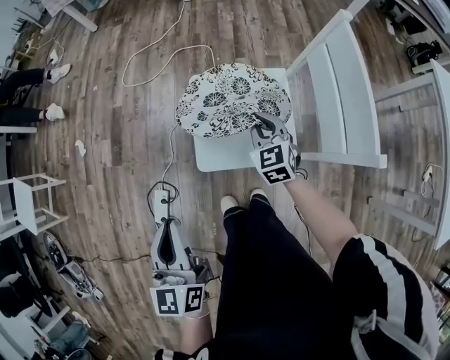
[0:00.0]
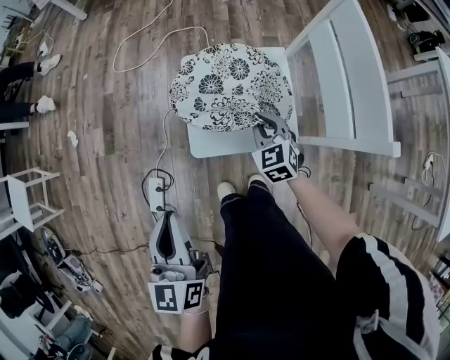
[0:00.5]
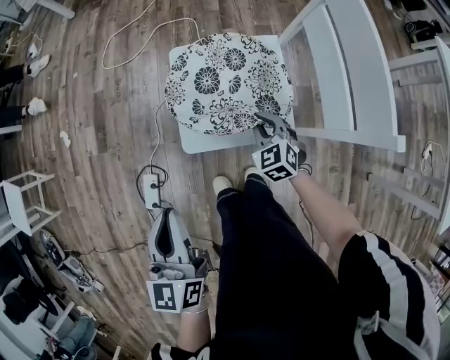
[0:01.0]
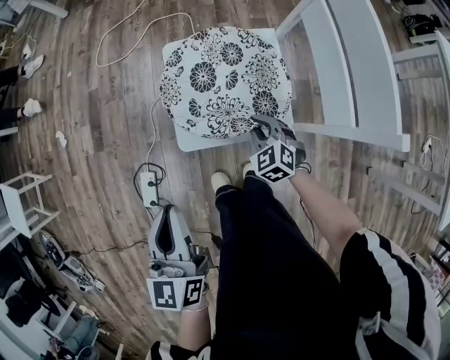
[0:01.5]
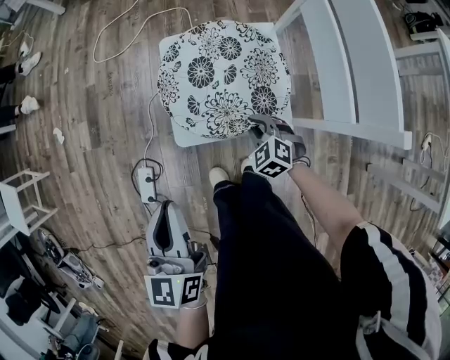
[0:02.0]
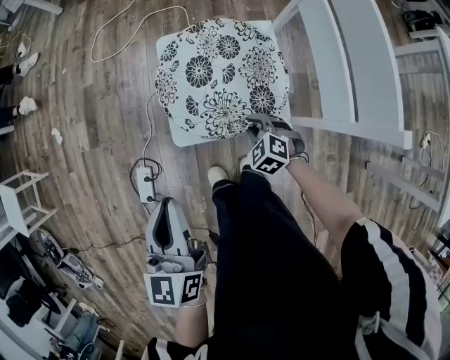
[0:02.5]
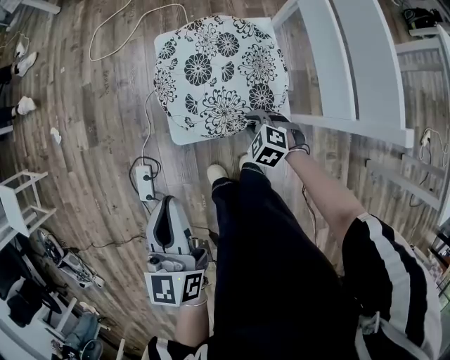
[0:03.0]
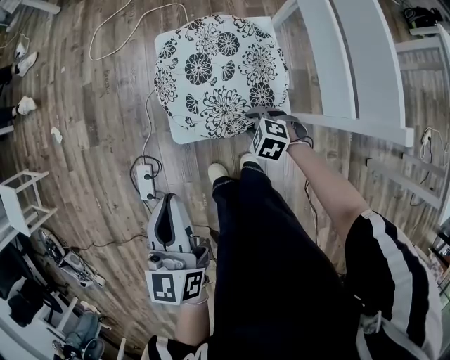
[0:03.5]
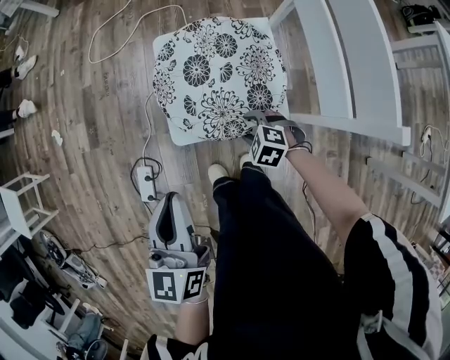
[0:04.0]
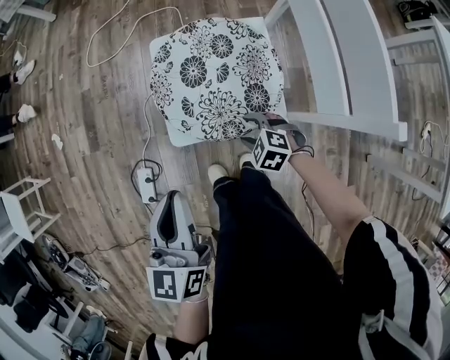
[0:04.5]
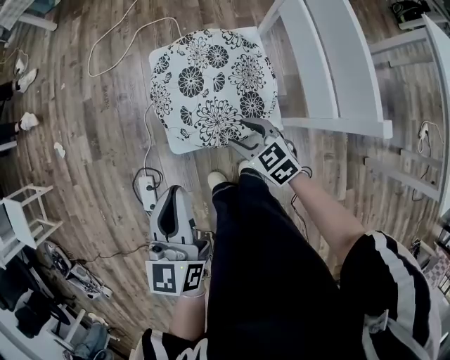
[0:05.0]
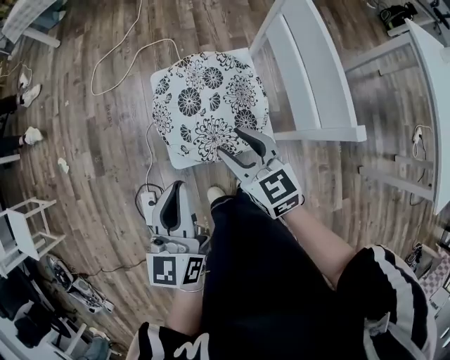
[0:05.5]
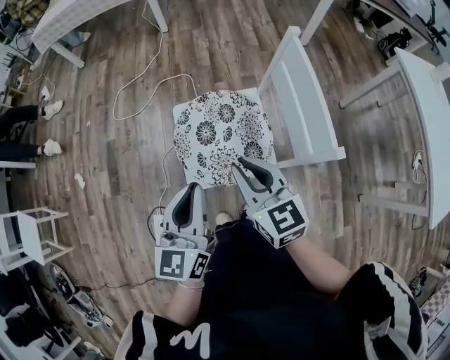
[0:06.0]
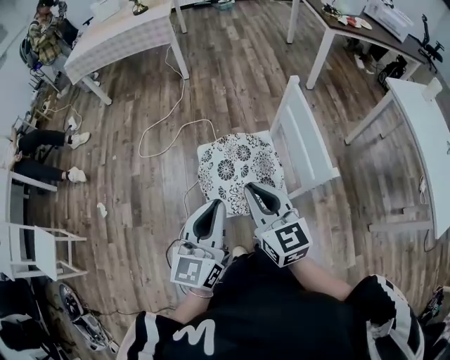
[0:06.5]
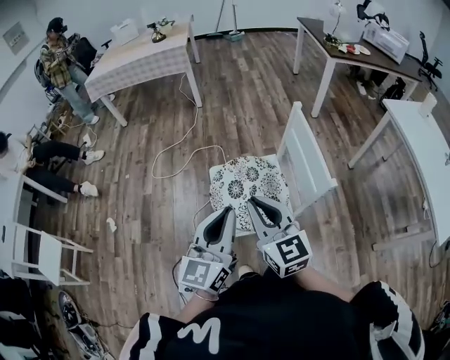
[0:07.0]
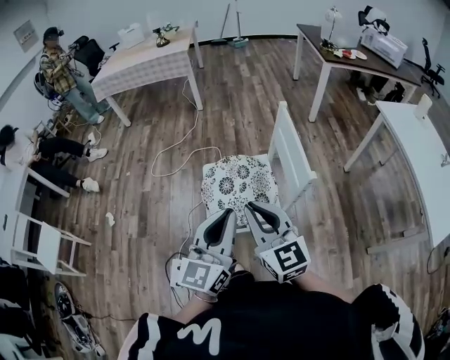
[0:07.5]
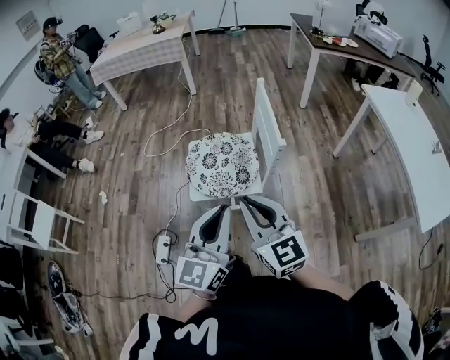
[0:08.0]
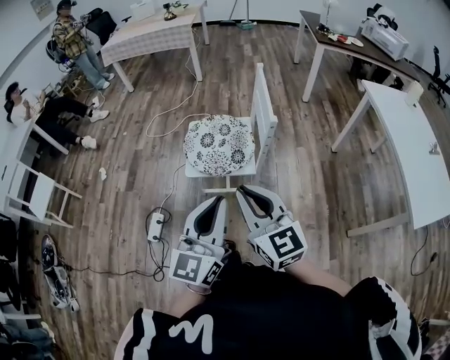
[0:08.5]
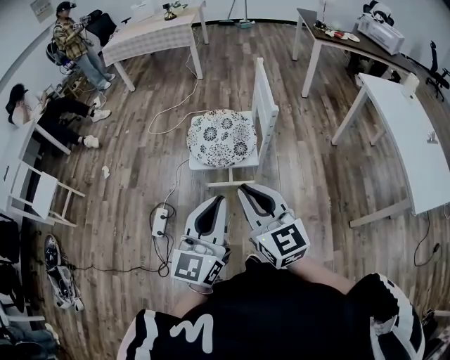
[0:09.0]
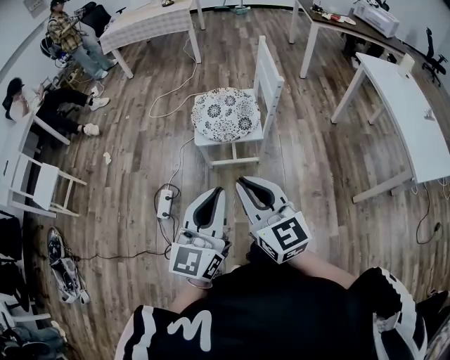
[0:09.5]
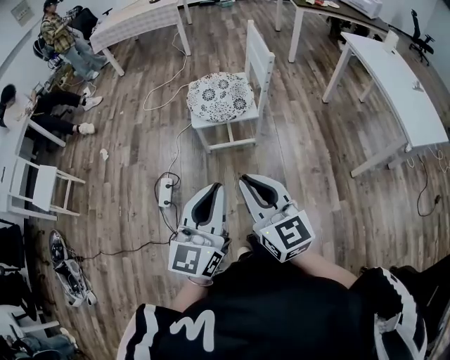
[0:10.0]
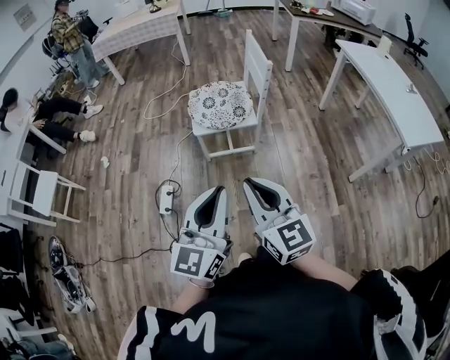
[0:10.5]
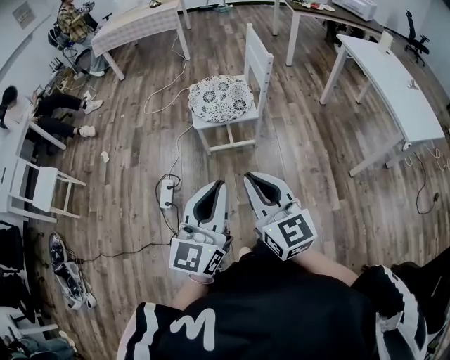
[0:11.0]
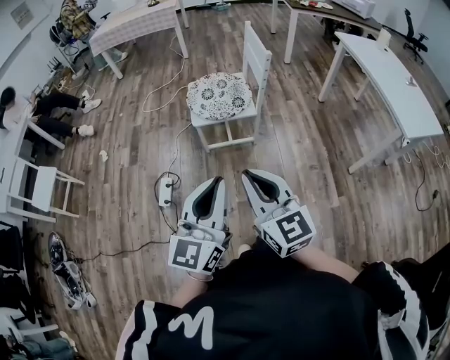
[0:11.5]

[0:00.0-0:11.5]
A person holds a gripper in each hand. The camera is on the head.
0:00.0 to 0:02.0: The right gripper heads downward and backward, covering approximately 20 cm, and rotates approximately 30 degrees. The left gripper heads downward, covering approximately 5 cm.
0:02.0 to 0:04.0: The right gripper swivels some 20 degrees, and opens its fingers.
0:04.0 to 0:06.0: The left gripper heads upward, covering roughly 10 cm. The right gripper goes some 35 cm upward, points its fingers approximately 50 degrees further upward, and closes up.
0:06.0 to 0:07.5: The left gripper travels upward, backward and to the right by roughly 20 cm. The right gripper heads upward and backward, covering some 20 cm.
0:07.5 to 0:09.5: The grippers both shift backward by approximately 30 cm.
0:09.5 to 0:11.5: The grippers both shift backward by some 10 cm.

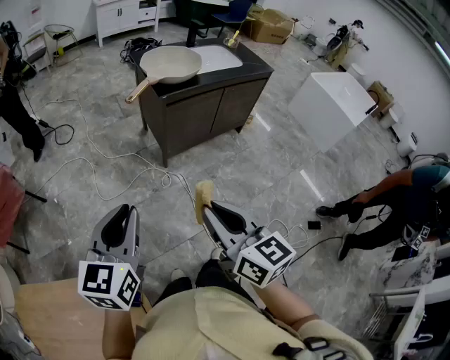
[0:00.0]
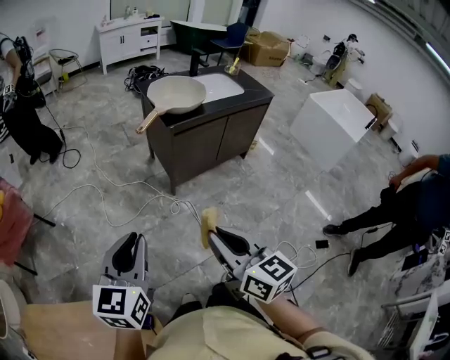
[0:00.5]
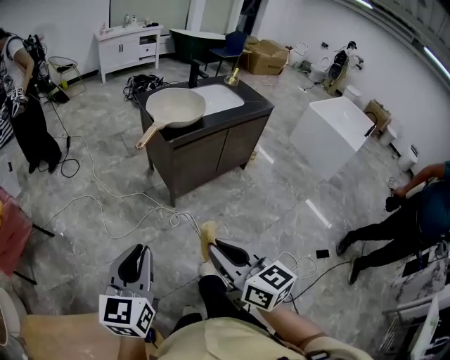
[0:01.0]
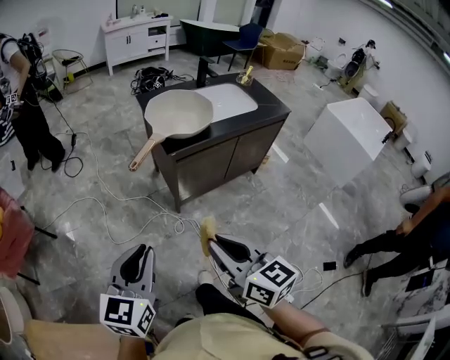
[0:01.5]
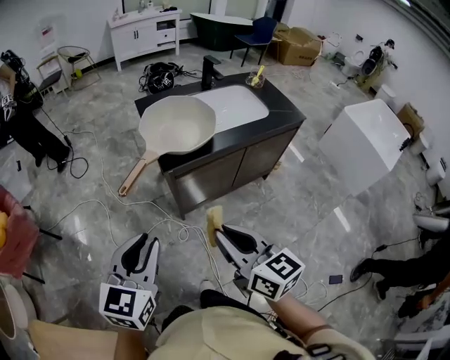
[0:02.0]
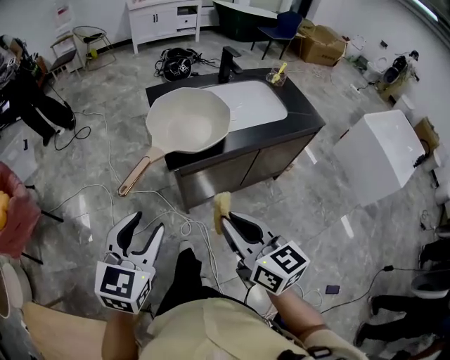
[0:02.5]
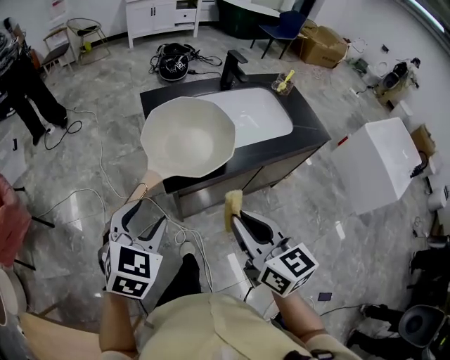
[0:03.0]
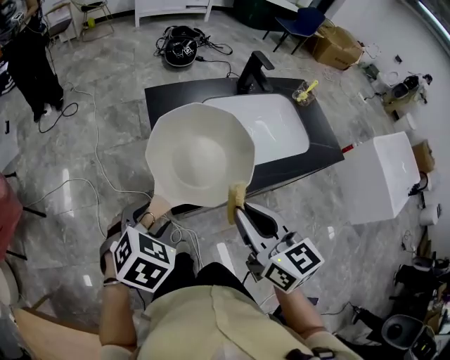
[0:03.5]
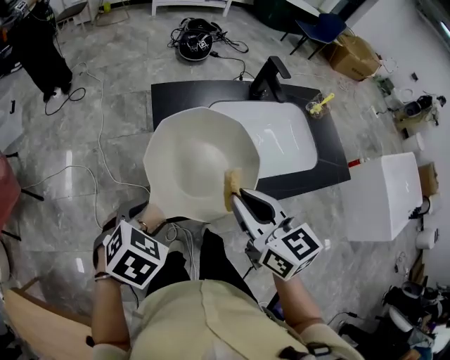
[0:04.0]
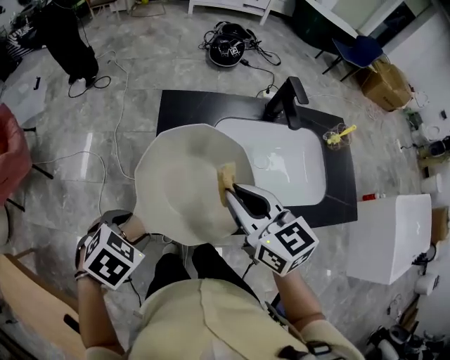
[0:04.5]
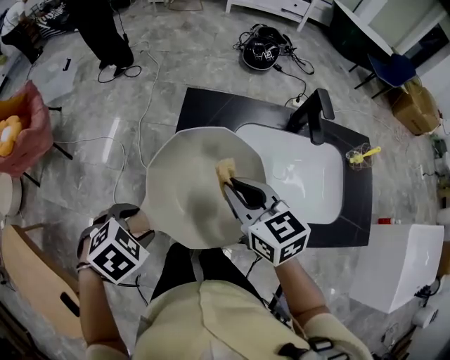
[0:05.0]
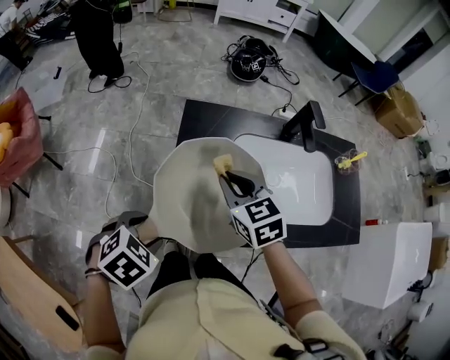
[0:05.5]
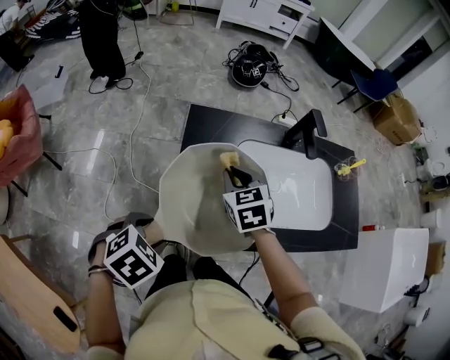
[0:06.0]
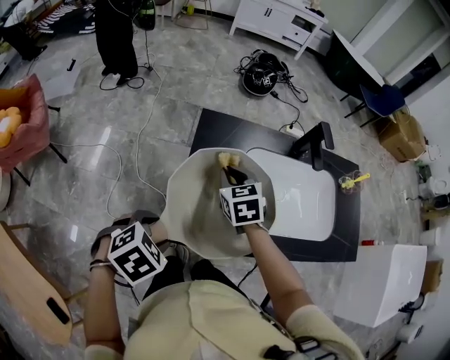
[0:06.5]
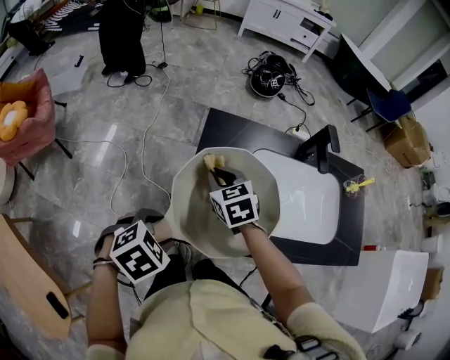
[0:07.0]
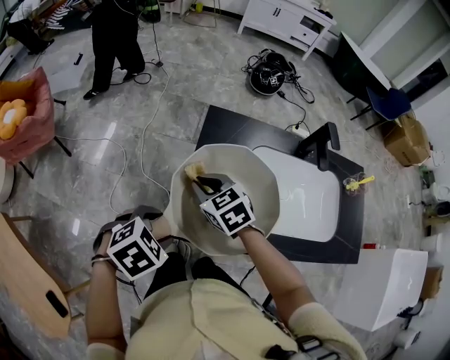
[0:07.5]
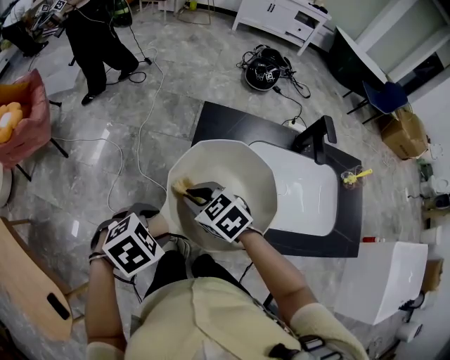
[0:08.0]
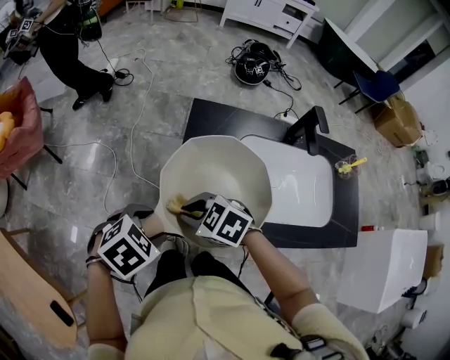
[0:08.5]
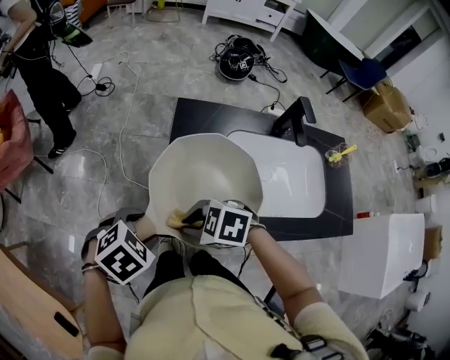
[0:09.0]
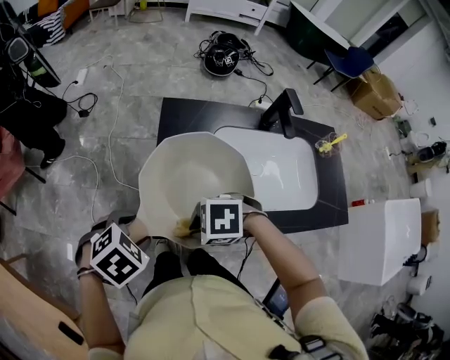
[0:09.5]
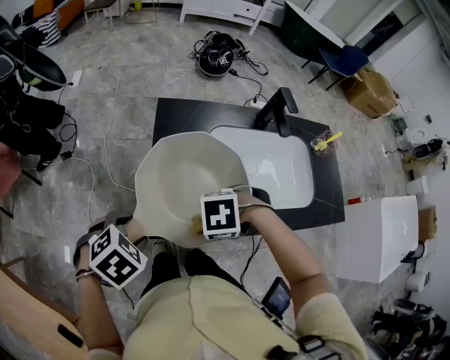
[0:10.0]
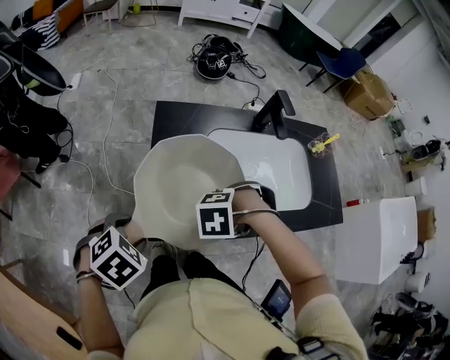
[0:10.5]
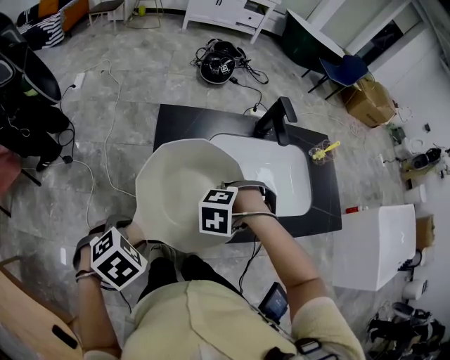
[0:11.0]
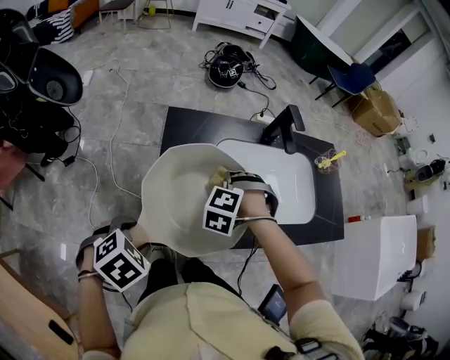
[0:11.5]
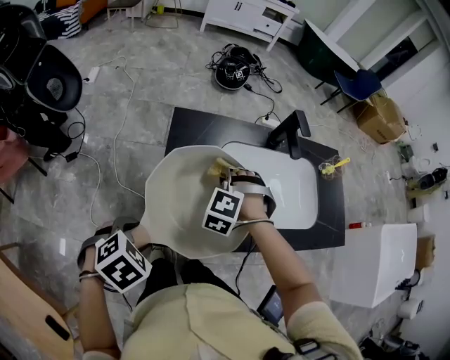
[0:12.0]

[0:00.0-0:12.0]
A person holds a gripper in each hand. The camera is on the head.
0:00.0 to 0:02.0: The right gripper shifts some 30 cm forward. The left gripper moves forward and to the right, about 30 cm.
0:02.0 to 0:04.0: The right gripper moves forward, approximately 40 cm; the left gripper heads forward and downward, covering approximately 35 cm, points its fingers some 40 degrees further downward, and opens its fingers.
0:04.0 to 0:06.0: The right gripper is displaced forward and downward by approximately 20 cm, and changes its angle by roughly 30 degrees.
0:06.0 to 0:08.0: The right gripper shifts about 15 cm to the left and backward, and swivels roughly 40 degrees.
0:08.0 to 0:10.0: The right gripper shifts by some 15 cm, and turns by some 50 degrees.
0:10.0 to 0:12.0: The right gripper moves approximately 20 cm, and rotates about 60 degrees.

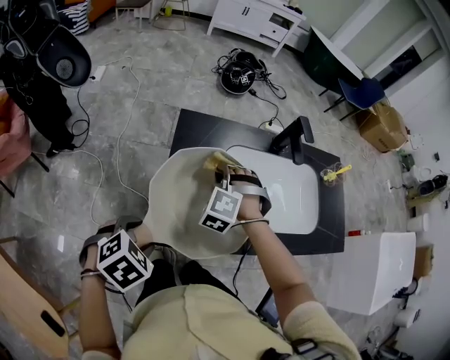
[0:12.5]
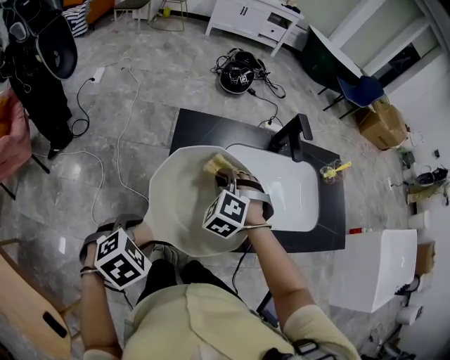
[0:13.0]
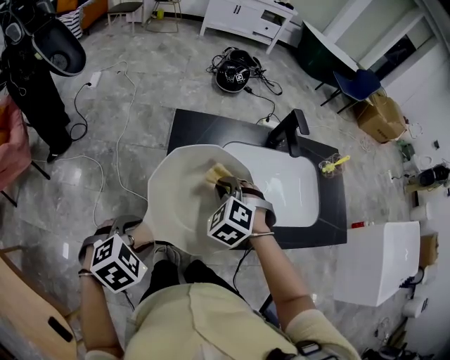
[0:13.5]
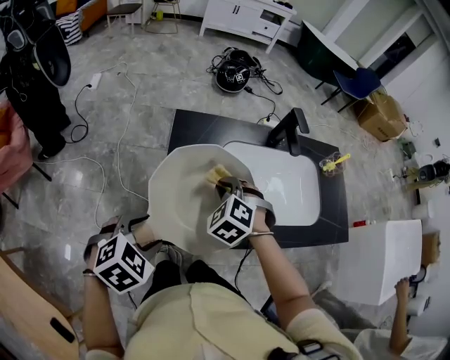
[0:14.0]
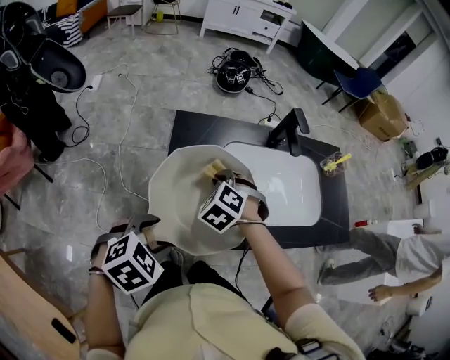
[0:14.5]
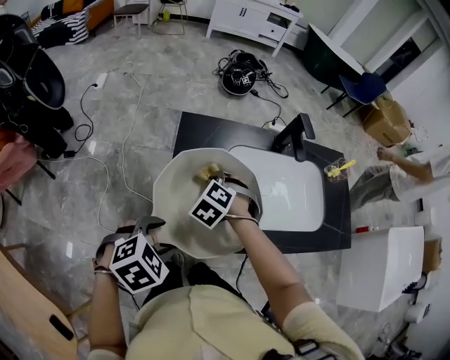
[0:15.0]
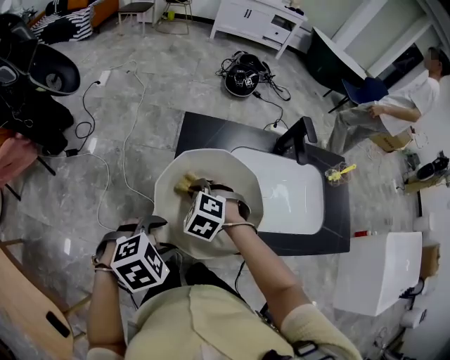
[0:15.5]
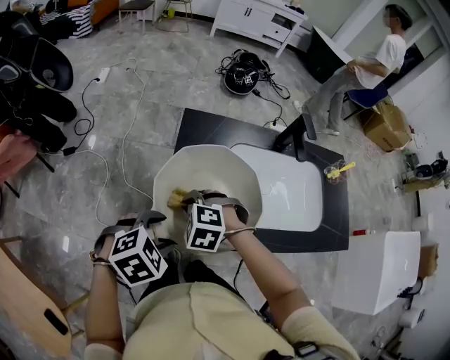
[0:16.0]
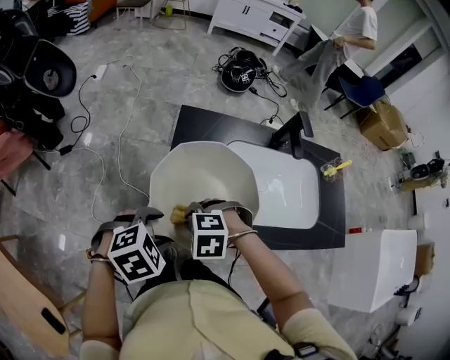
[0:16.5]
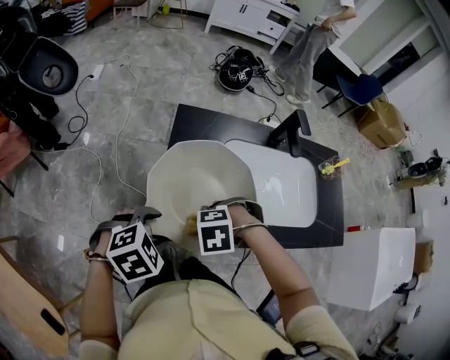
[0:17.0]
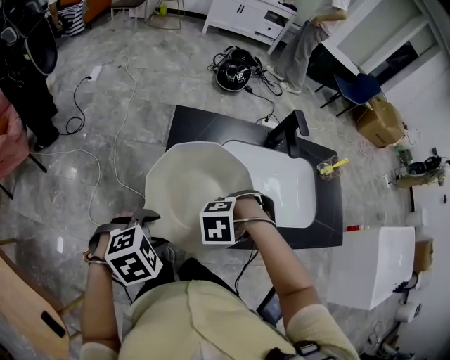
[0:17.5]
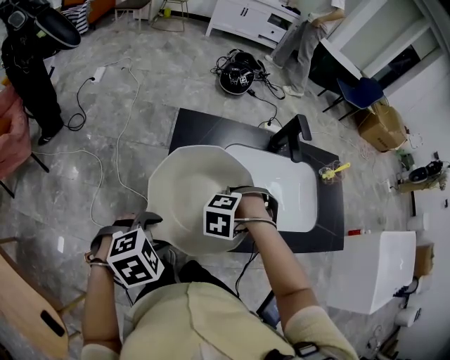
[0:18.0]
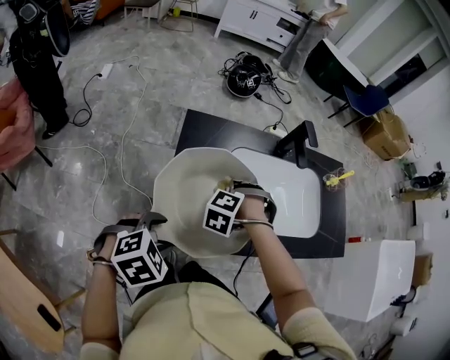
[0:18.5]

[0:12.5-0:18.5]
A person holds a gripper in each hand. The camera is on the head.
0:12.5 to 0:14.5: The left gripper changes place by about 5 cm, while the right gripper turns by approximately 20 degrees.
0:14.5 to 0:16.5: The right gripper ends up approximately 15 cm from where it was, and swivels about 40 degrees.
0:16.5 to 0:18.5: The right gripper ends up roughly 15 cm from where it was, and swivels some 30 degrees.
